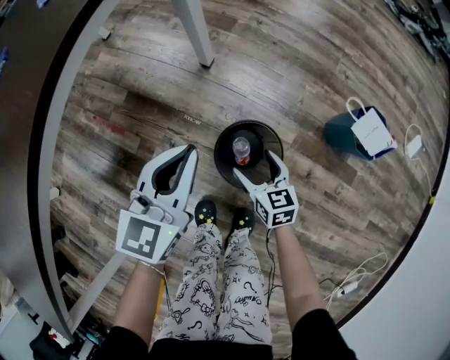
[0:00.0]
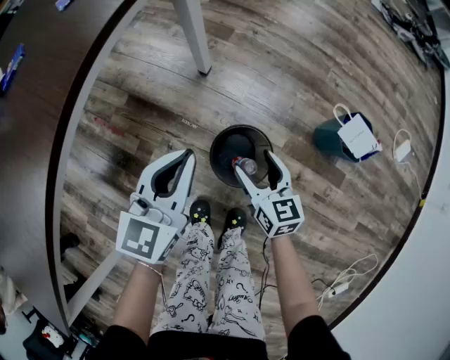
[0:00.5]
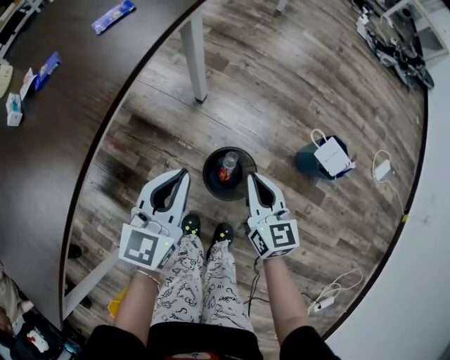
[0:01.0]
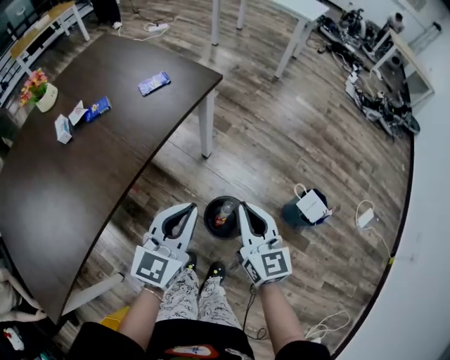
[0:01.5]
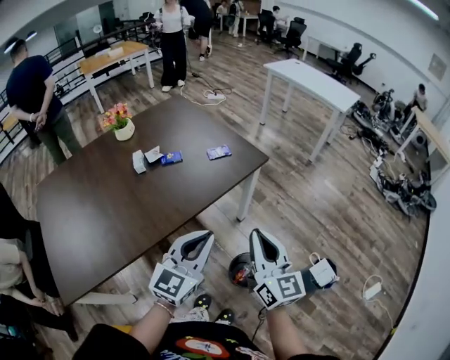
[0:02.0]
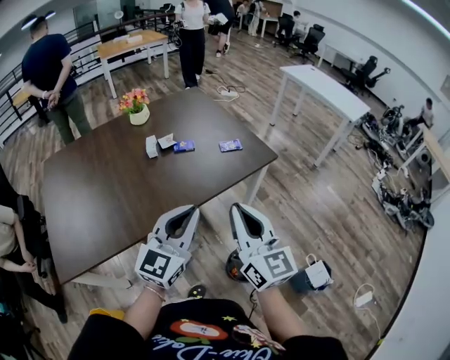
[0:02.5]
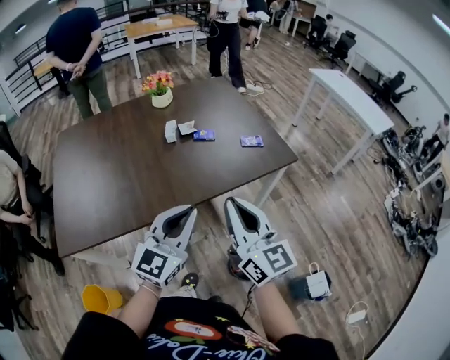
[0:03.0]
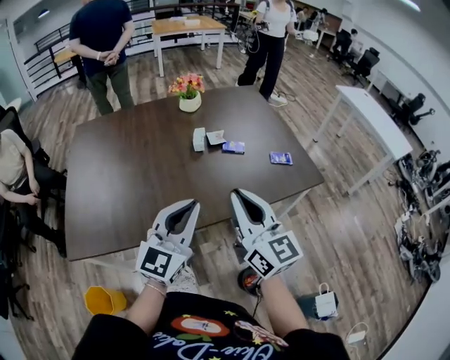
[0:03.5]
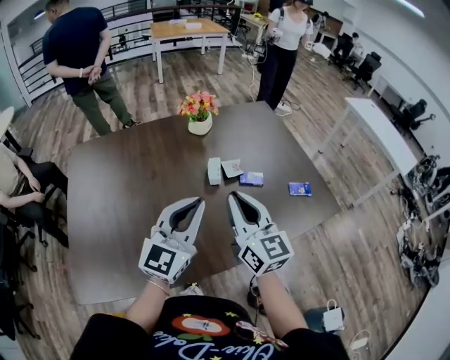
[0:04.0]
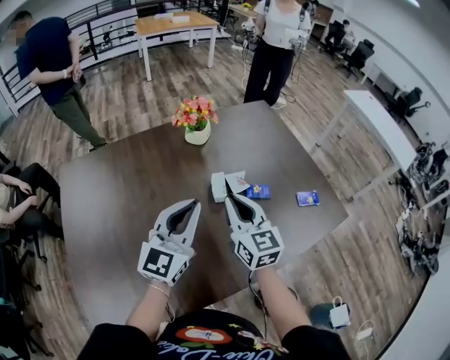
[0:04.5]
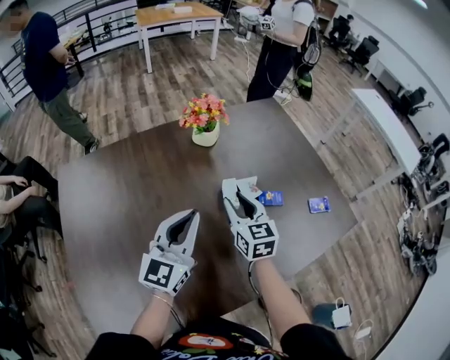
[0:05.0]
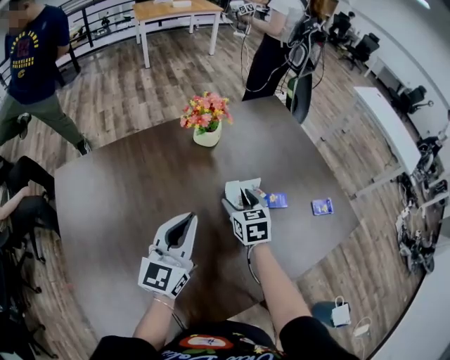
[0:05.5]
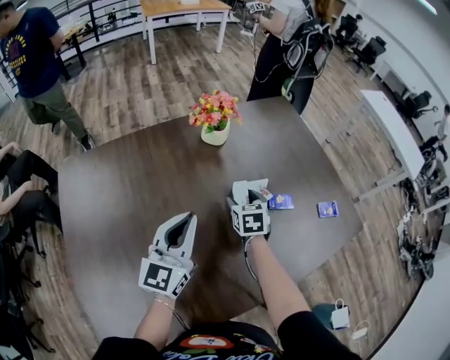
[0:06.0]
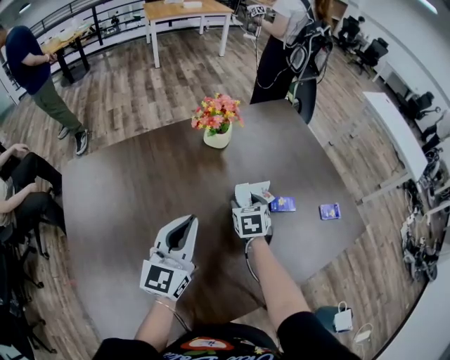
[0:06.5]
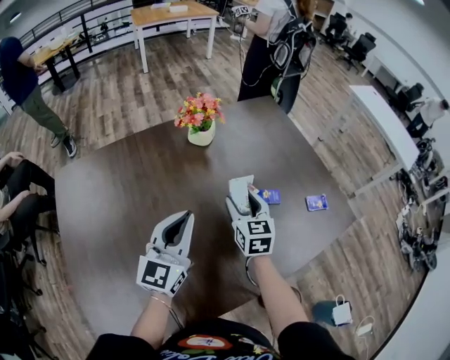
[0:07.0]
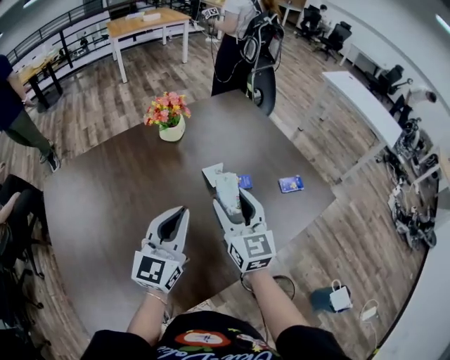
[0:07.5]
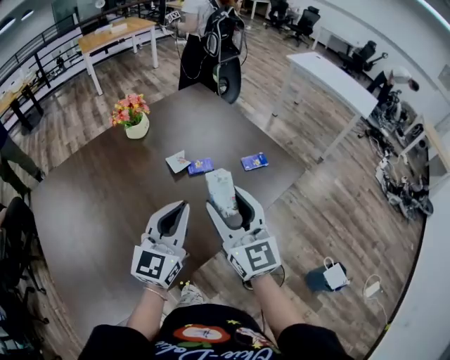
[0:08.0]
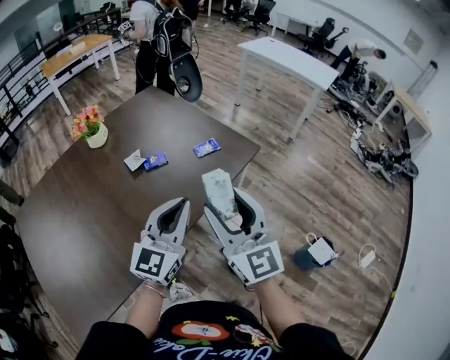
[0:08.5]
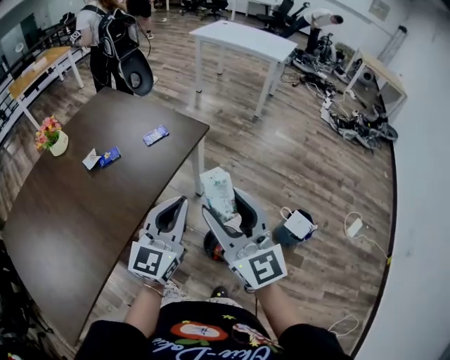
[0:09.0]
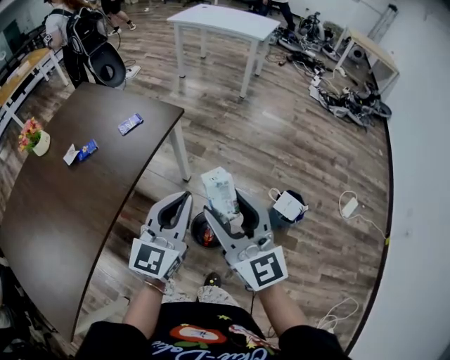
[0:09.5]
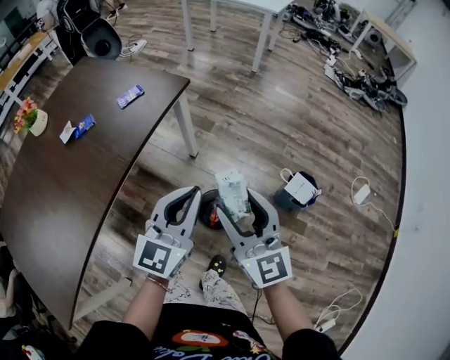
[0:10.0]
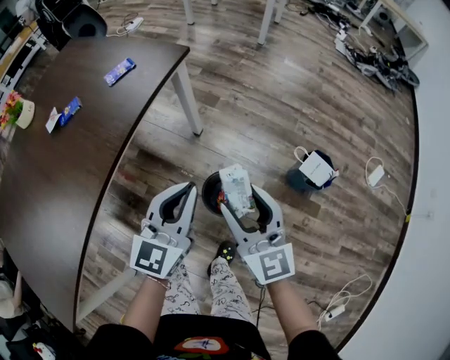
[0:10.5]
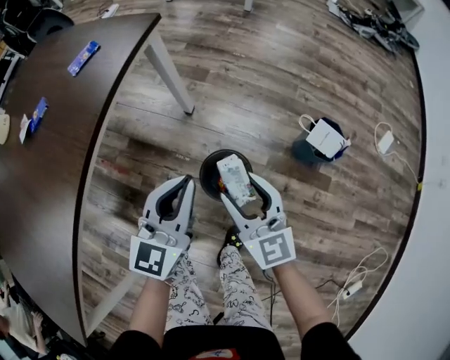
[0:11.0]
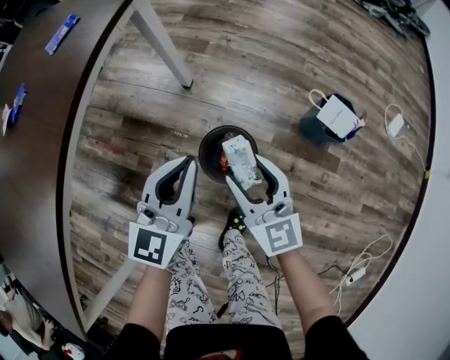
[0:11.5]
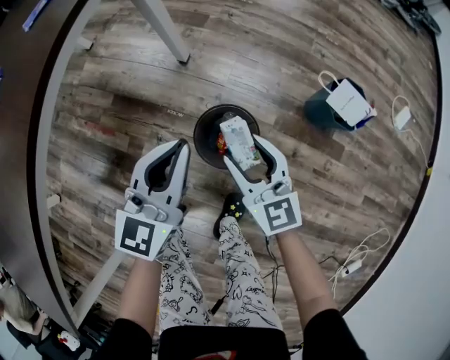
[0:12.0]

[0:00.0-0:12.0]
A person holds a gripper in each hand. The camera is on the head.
0:00.0 to 0:02.0: The right gripper travels upward by roughly 60 cm, tips its fingers upward by some 40 degrees, and closes. The left gripper is displaced upward by some 40 cm, and swivels some 20 degrees.
0:02.0 to 0:04.0: The left gripper ends up about 35 cm from where it was, and swivels some 30 degrees; the right gripper changes place by approximately 40 cm, and swivels about 30 degrees.
0:04.0 to 0:06.0: The left gripper heads forward, to the left and downward, covering about 20 cm; the right gripper is displaced downward and forward by about 35 cm, tips its fingers downward by some 50 degrees, and opens up.
0:06.0 to 0:08.0: The left gripper moves to the right and backward, roughly 25 cm. The right gripper is displaced upward, backward and to the right by some 40 cm, and angles its fingers upward, by roughly 50 degrees.
0:08.0 to 0:10.0: The two grippers travel together, roughly 40 cm. The left gripper turns by approximately 30 degrees, while the right gripper swivels some 20 degrees.
0:10.0 to 0:12.0: Both grippers travel together downward, some 35 cm. The right gripper turns by about 20 degrees.

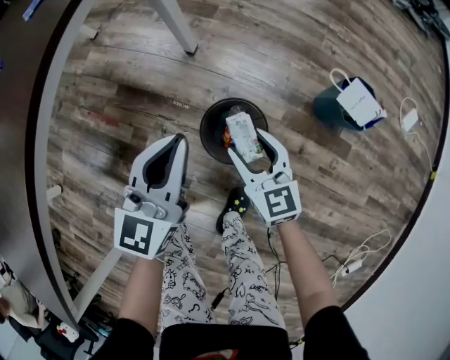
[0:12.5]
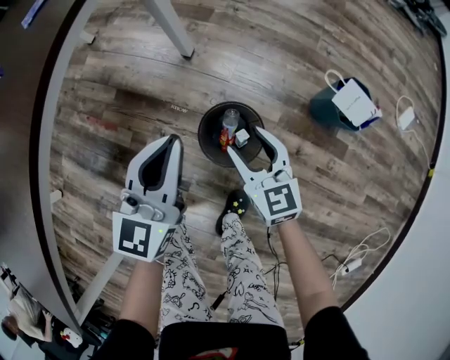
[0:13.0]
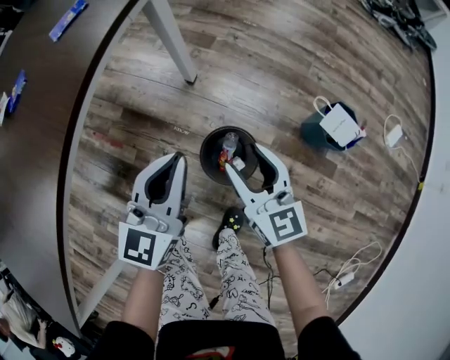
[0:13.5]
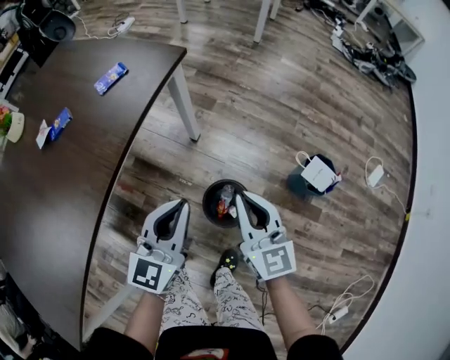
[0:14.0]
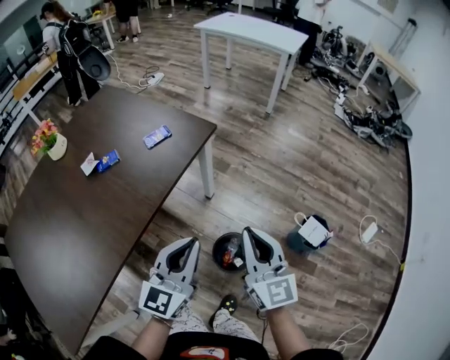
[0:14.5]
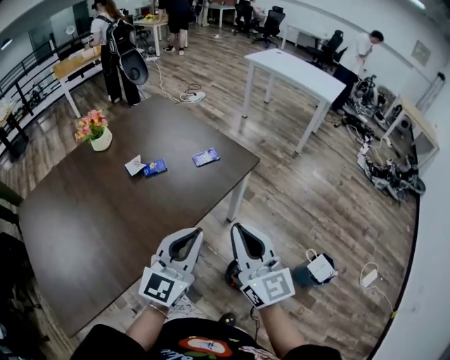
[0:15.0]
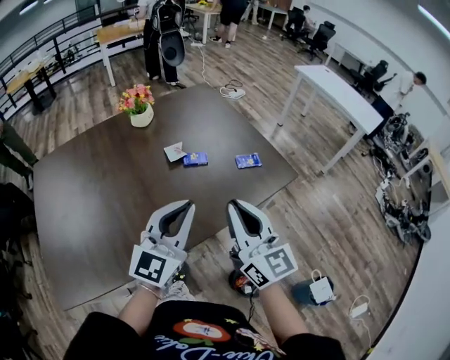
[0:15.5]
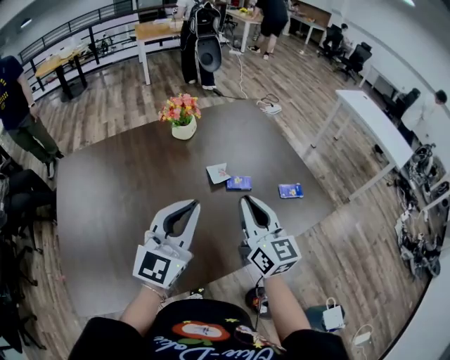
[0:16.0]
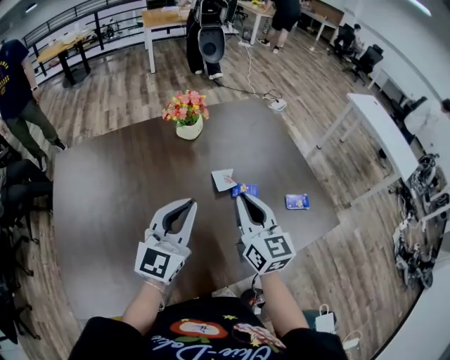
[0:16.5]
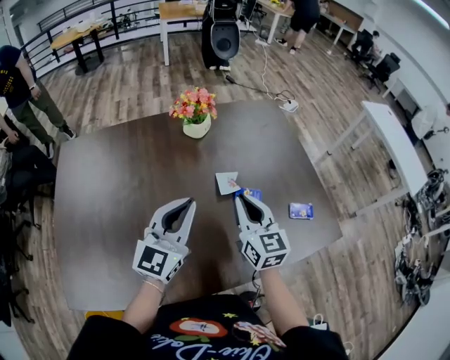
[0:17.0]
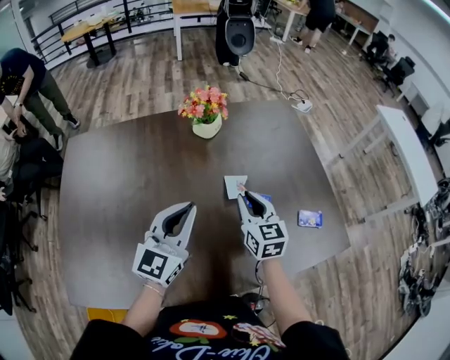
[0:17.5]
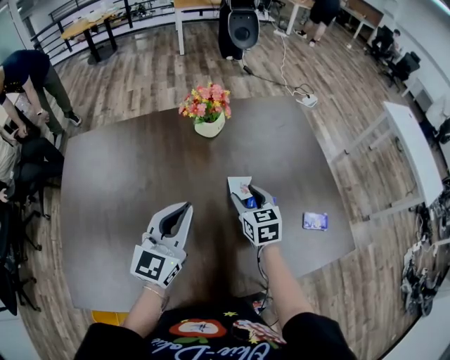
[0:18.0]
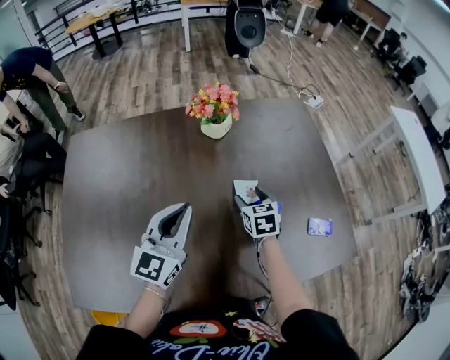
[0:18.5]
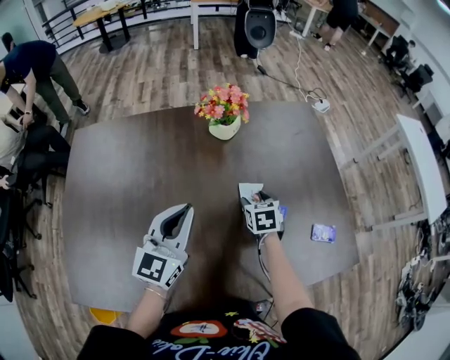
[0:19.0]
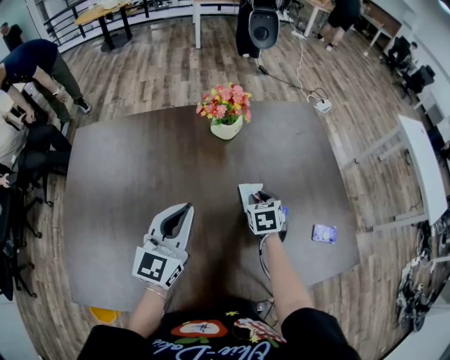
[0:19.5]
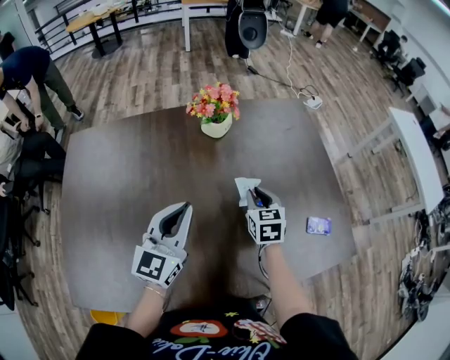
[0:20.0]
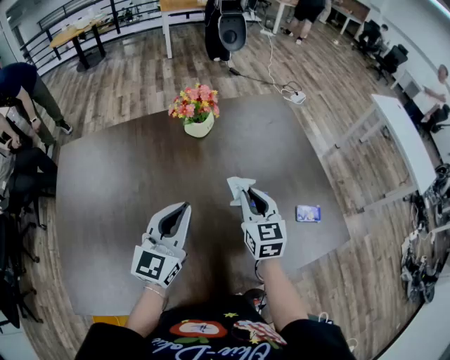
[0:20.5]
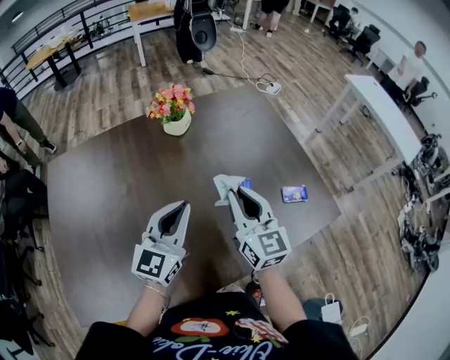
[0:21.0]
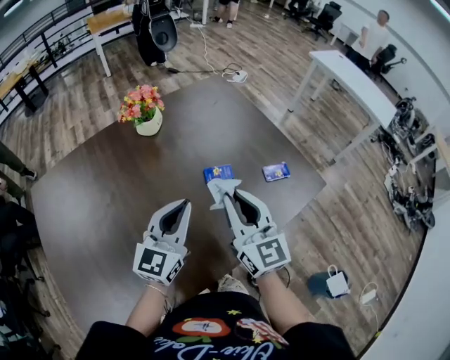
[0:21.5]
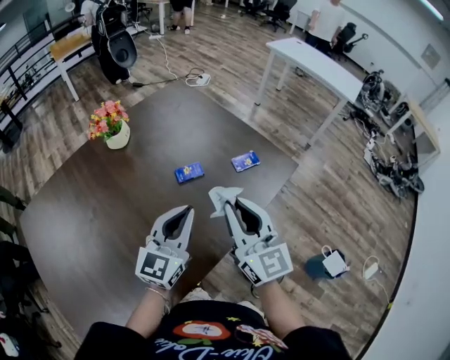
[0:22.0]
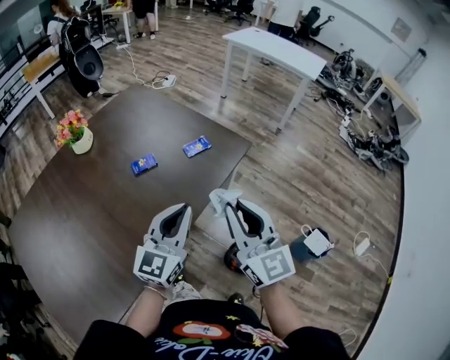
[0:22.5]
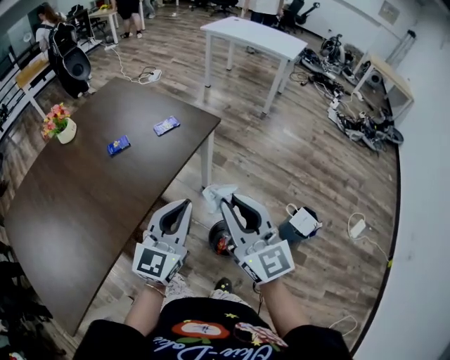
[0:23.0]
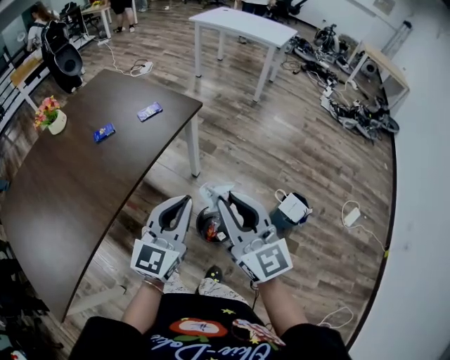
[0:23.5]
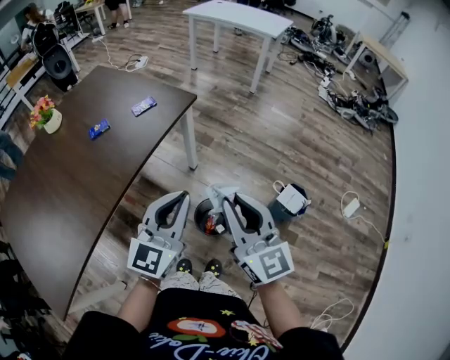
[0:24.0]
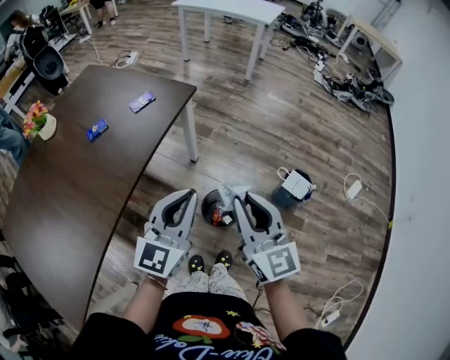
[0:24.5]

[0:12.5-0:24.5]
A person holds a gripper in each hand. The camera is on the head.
0:12.5 to 0:14.5: Both grippers move upward, some 35 cm. The right gripper rotates about 20 degrees, and closes its fingers.
0:14.5 to 0:16.5: Both grippers are carried about 50 cm. The right gripper rotates approximately 40 degrees; the left gripper rotates roughly 40 degrees.
0:16.5 to 0:18.5: The left gripper heads forward, covering approximately 5 cm; the right gripper moves downward and forward, roughly 25 cm, tips its fingers downward by some 40 degrees, and opens up.
0:18.5 to 0:20.5: The right gripper heads upward and backward, covering roughly 10 cm, changes its angle by roughly 20 degrees, and closes up.
0:20.5 to 0:22.5: The right gripper shifts by some 40 cm, and changes its angle by about 40 degrees. Meanwhile the left gripper shifts by about 30 cm, and changes its angle by some 40 degrees.
0:22.5 to 0:24.5: The two grippers go about 25 cm to the right and backward.

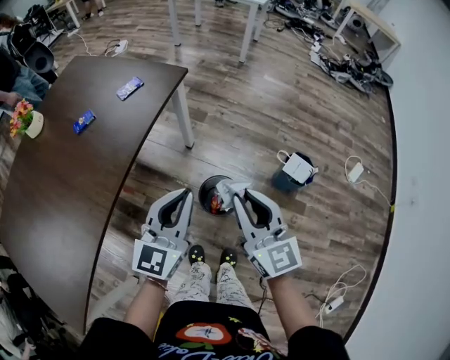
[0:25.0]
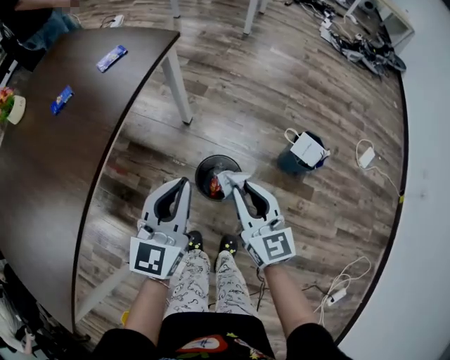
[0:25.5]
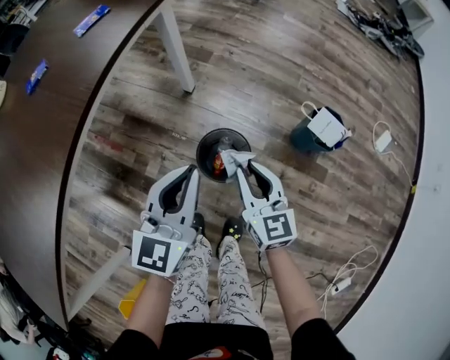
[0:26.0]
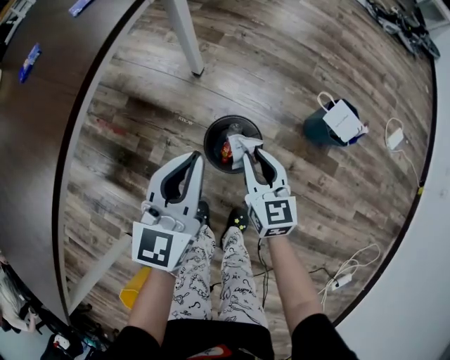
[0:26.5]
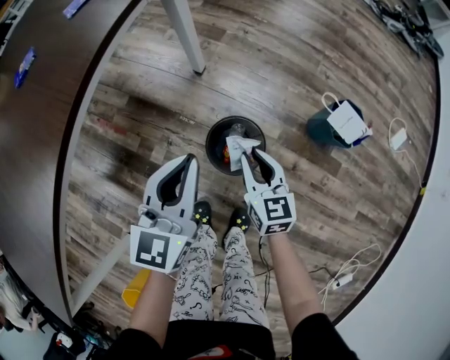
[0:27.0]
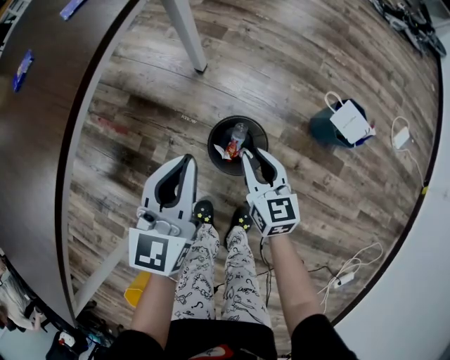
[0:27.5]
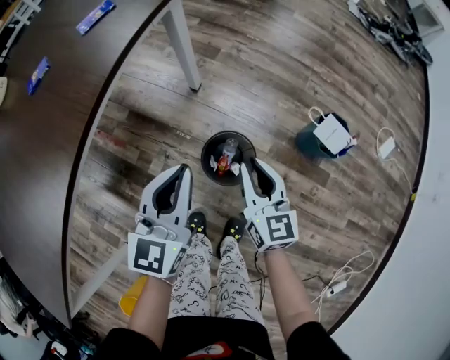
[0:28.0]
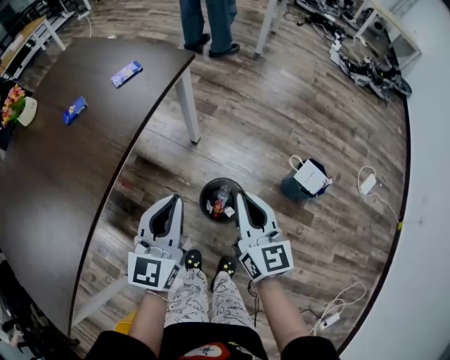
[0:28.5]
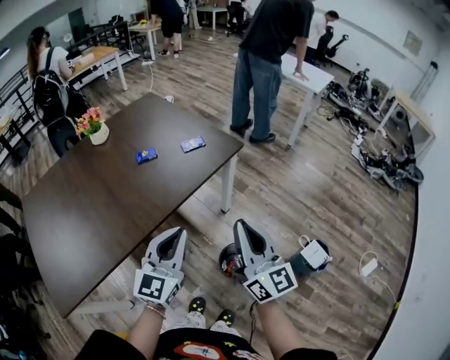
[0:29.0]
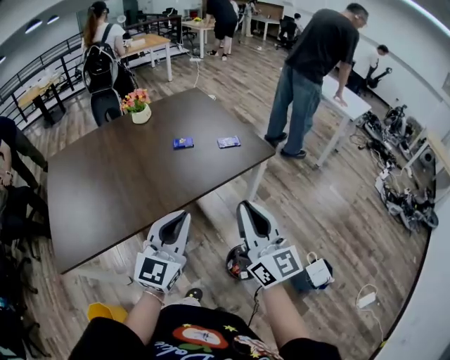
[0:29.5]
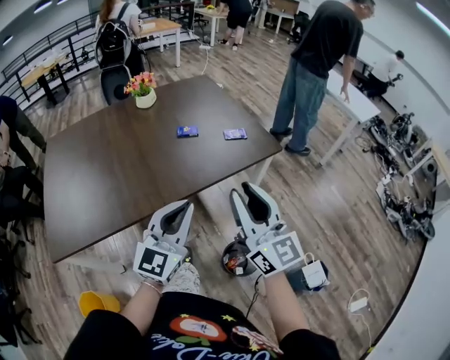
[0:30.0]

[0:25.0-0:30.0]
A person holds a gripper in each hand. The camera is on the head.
0:25.0 to 0:27.5: The left gripper goes some 25 cm downward, while the right gripper heads downward, covering some 35 cm, and changes its angle by approximately 30 degrees.
0:27.5 to 0:30.0: The left gripper travels upward by about 30 cm, and changes its angle by some 30 degrees. Meanwhile the right gripper is displaced upward by about 50 cm, and points its fingers about 40 degrees further upward.
